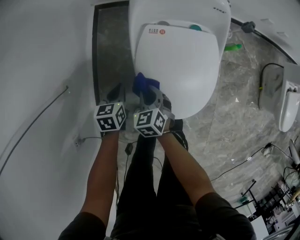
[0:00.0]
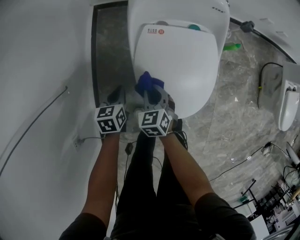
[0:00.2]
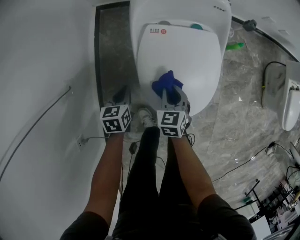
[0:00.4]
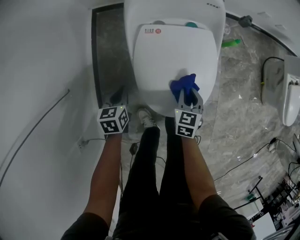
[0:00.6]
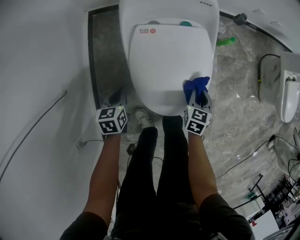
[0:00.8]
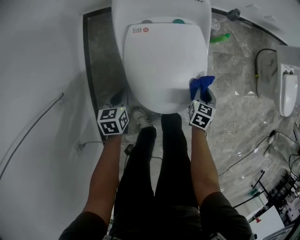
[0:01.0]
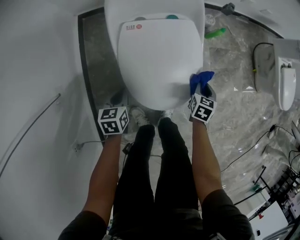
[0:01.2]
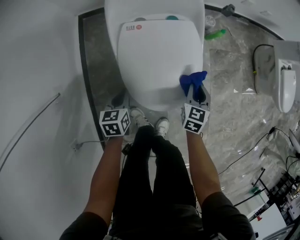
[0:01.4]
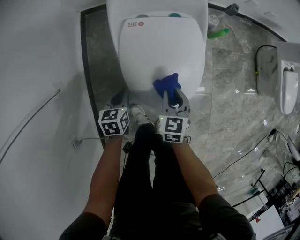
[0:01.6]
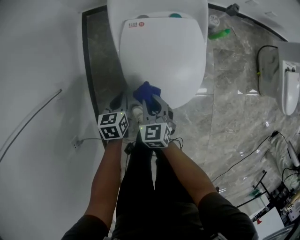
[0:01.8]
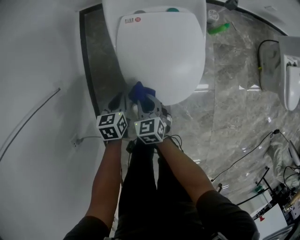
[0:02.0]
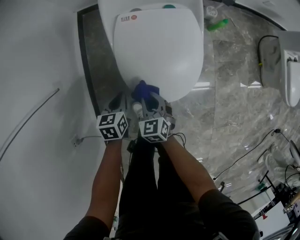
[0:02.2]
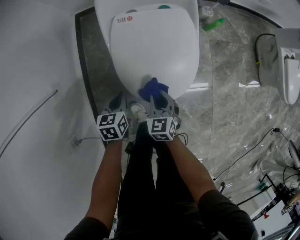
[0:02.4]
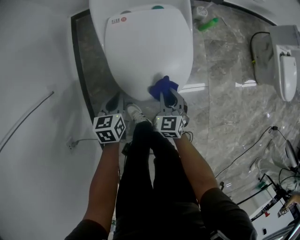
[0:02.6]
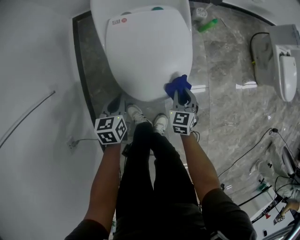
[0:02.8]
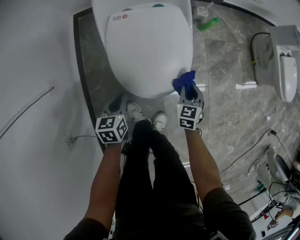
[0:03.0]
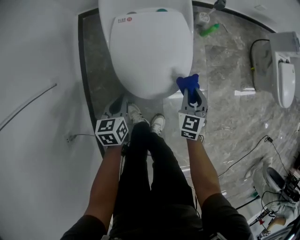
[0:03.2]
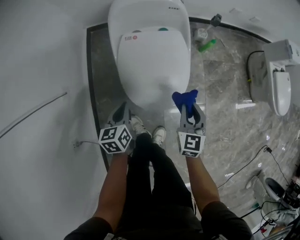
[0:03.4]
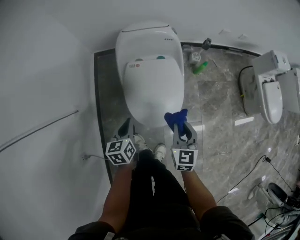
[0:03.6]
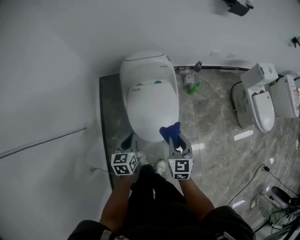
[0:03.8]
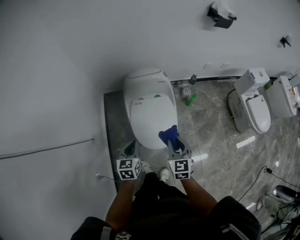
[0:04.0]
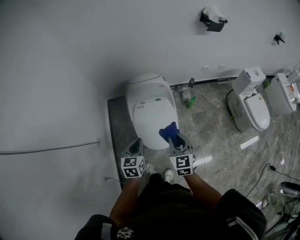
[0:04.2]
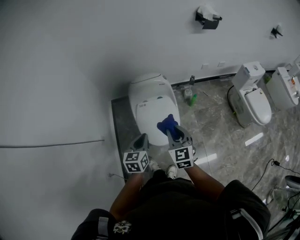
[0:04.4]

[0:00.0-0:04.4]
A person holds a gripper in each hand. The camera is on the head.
0:00.0 to 0:01.4: The right gripper shifts by some 30 cm, and turns by about 40 degrees. The left gripper ends up about 10 cm from where it was.
0:01.4 to 0:03.0: Both grippers travel together backward, roughly 5 cm. The right gripper moves about 20 cm to the left and comes back.
0:03.0 to 0:04.4: The grippers both shift upward by approximately 40 cm. The left gripper turns by approximately 20 degrees. Meanwhile the right gripper turns by some 30 degrees.

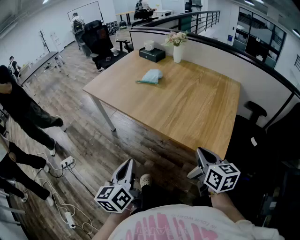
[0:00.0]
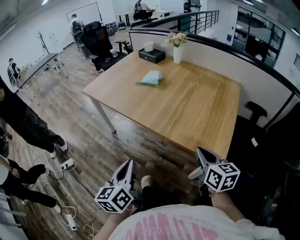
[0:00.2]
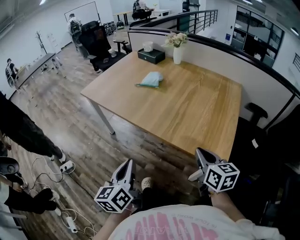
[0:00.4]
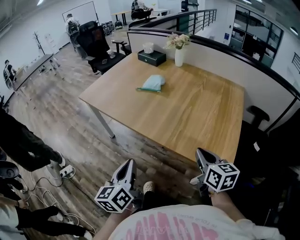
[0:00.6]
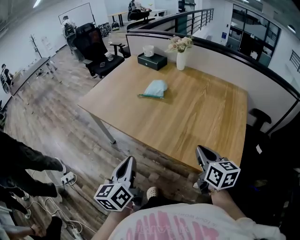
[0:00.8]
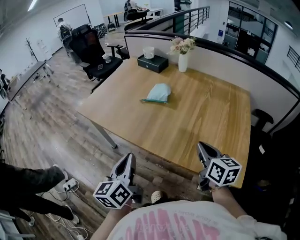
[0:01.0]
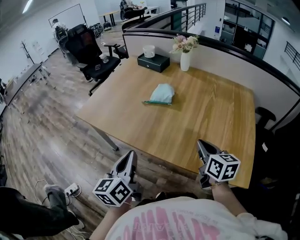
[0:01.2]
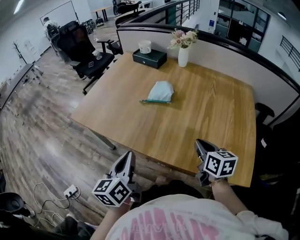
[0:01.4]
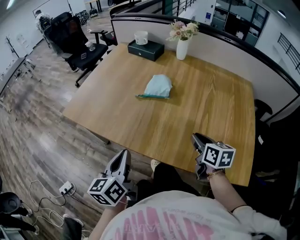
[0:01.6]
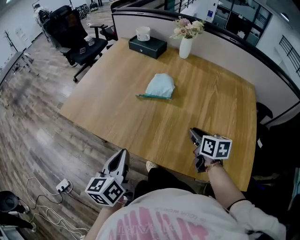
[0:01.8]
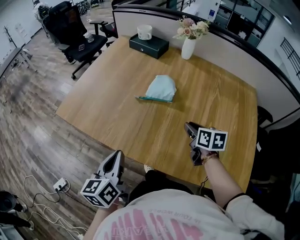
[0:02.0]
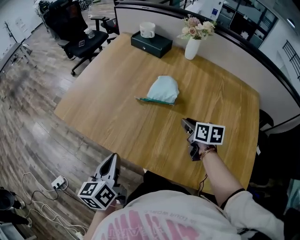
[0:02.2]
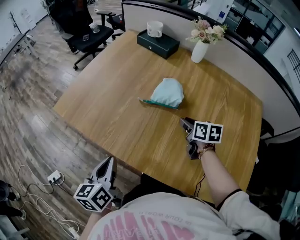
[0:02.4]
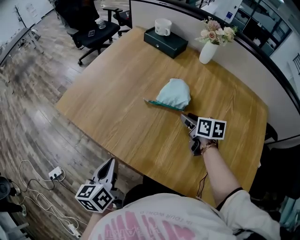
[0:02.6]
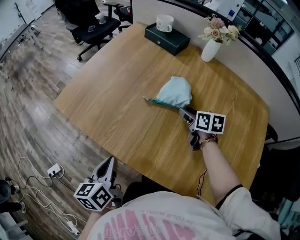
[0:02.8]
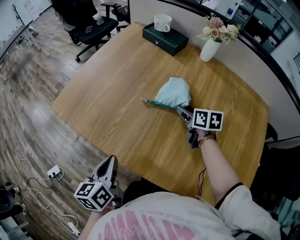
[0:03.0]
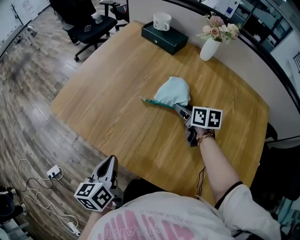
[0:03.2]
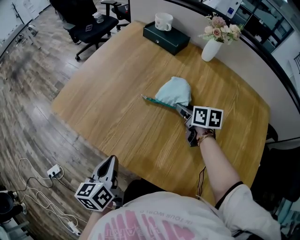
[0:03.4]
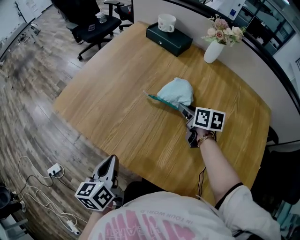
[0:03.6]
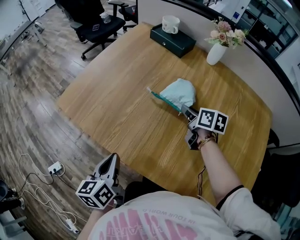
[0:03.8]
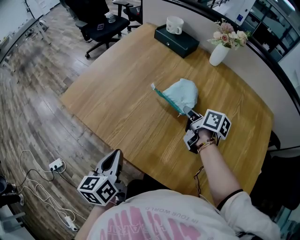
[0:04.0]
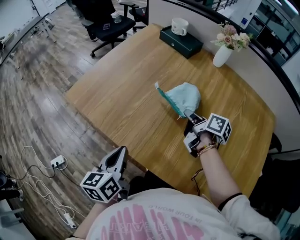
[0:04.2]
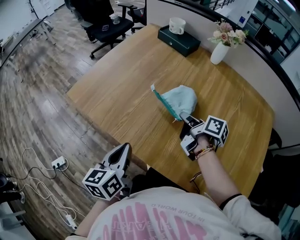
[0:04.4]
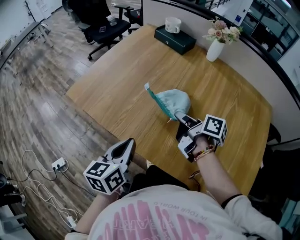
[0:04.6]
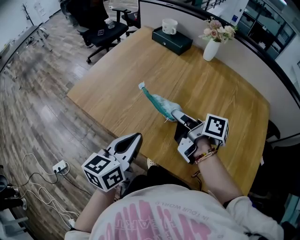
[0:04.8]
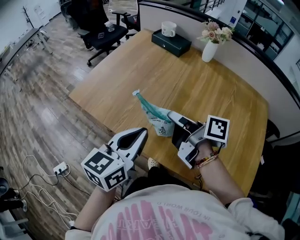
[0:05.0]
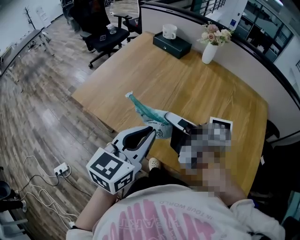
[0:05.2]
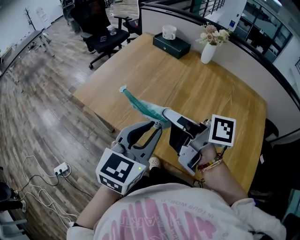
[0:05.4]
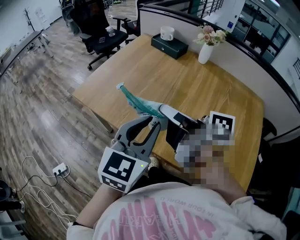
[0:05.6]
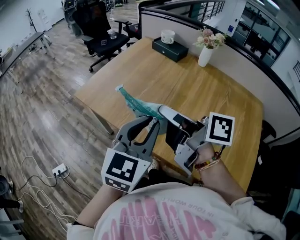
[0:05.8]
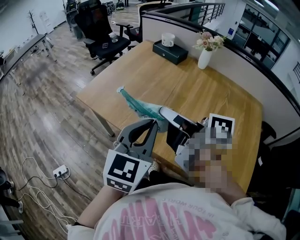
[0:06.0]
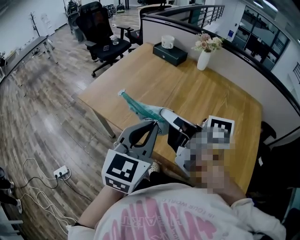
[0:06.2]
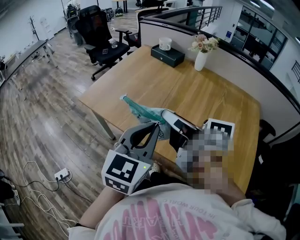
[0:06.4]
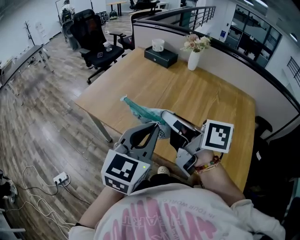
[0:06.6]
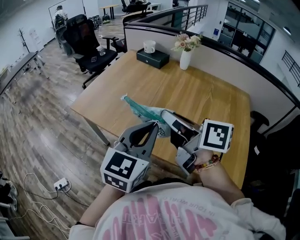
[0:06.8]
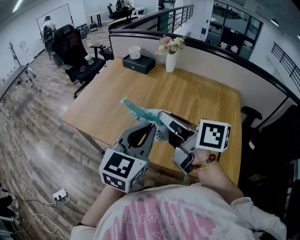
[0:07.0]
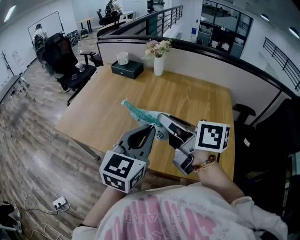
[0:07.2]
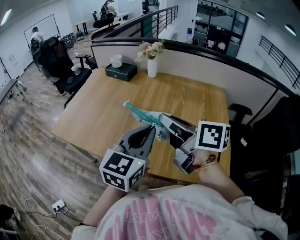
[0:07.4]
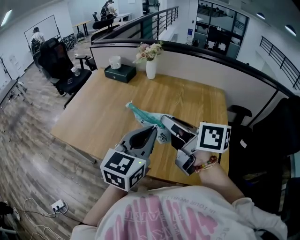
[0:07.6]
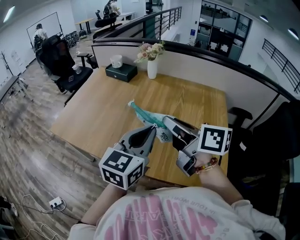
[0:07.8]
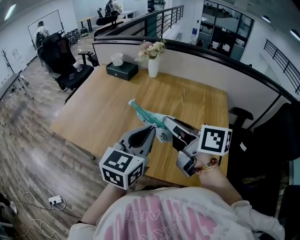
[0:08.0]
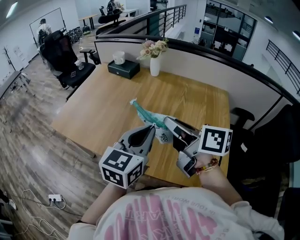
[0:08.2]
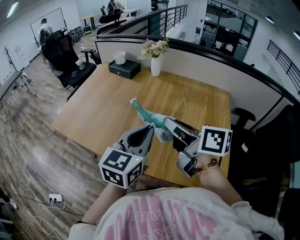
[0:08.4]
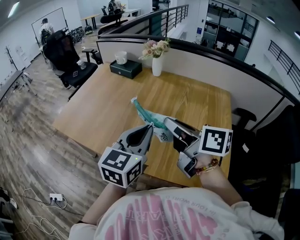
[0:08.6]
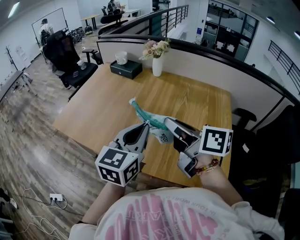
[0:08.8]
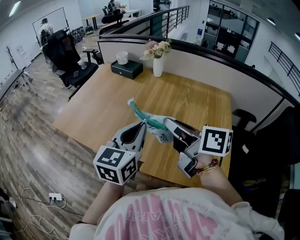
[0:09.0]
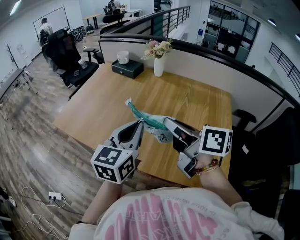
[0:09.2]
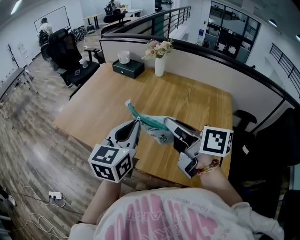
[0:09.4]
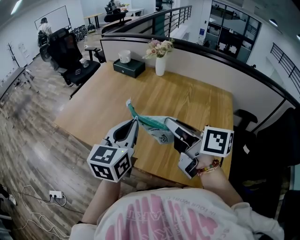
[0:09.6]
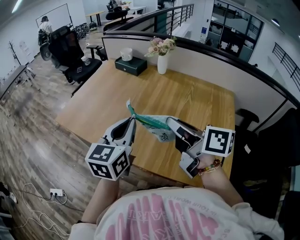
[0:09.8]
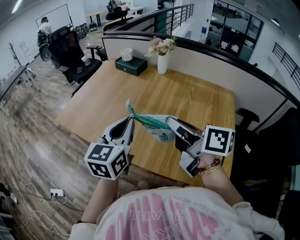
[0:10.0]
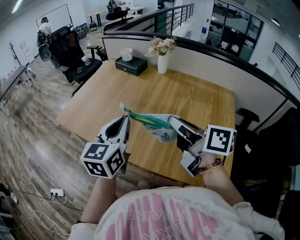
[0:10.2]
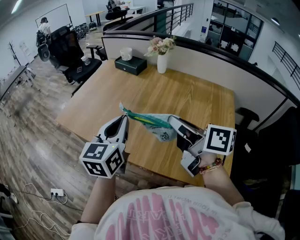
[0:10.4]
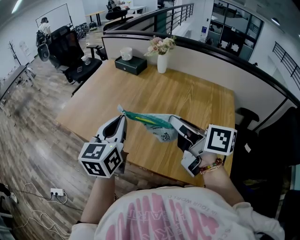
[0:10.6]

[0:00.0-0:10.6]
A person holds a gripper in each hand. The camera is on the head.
0:00.0 to 0:01.6: Both grippers move forward, some 35 cm.
0:01.6 to 0:03.0: The left gripper goes about 10 cm forward and downward; the right gripper shifts some 25 cm forward, and opens its fingers.
0:03.0 to 0:04.6: The left gripper shifts by approximately 5 cm. Meanwhile the right gripper is displaced backward, to the left and upward by some 15 cm, swivels roughly 40 degrees, and closes up.
0:04.6 to 0:06.0: The left gripper shifts some 15 cm upward, and changes its angle by about 40 degrees, while the right gripper travels upward, backward and to the left by some 25 cm, and turns by approximately 30 degrees.
0:06.0 to 0:07.6: The two grippers go some 20 cm to the right. The right gripper turns by roughly 30 degrees, while the left gripper swivels approximately 20 degrees.
0:07.6 to 0:09.0: The left gripper shifts by approximately 5 cm.
0:09.0 to 0:10.6: The left gripper is displaced to the left by about 10 cm.

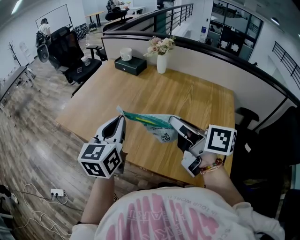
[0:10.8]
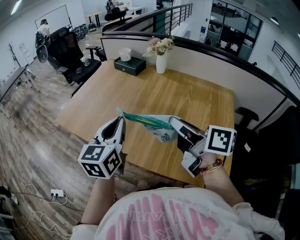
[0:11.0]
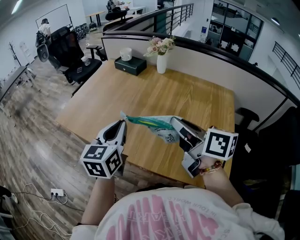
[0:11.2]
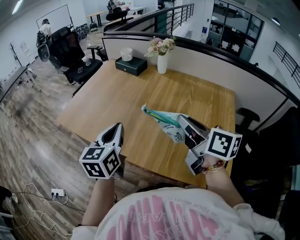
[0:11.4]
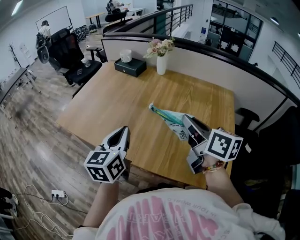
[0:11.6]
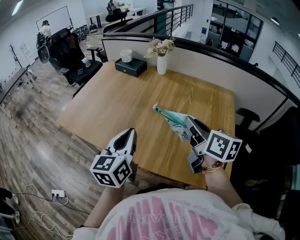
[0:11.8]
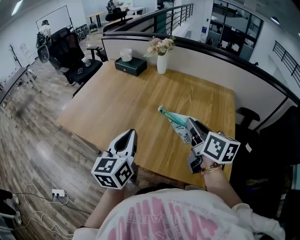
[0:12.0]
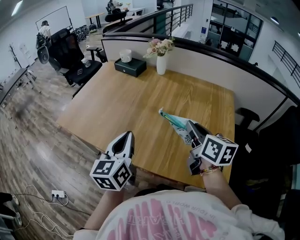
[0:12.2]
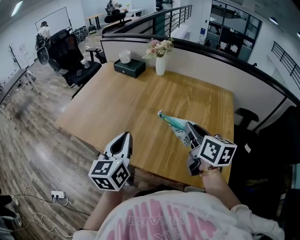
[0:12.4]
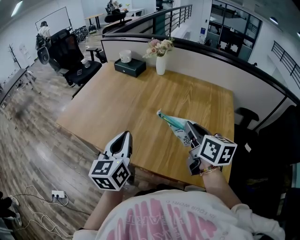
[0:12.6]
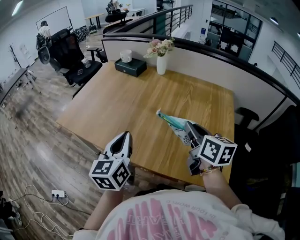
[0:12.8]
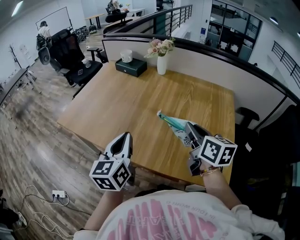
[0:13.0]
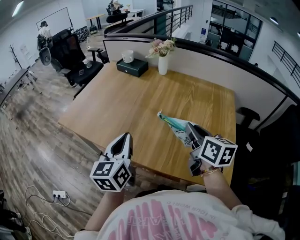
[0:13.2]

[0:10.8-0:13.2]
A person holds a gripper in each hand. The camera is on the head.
0:10.8 to 0:12.0: The right gripper heads to the right, covering about 10 cm, and turns by approximately 30 degrees, while the left gripper changes place by some 5 cm.
0:12.0 to 0:13.2: The grippers move only a little.

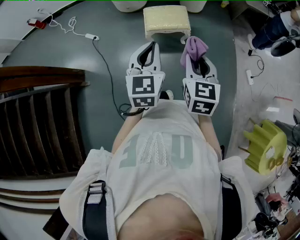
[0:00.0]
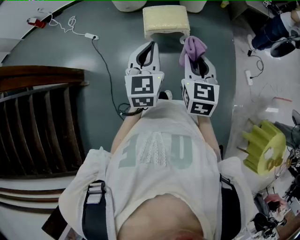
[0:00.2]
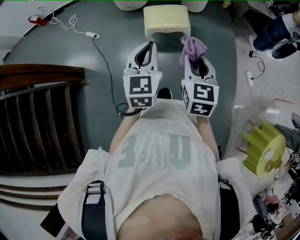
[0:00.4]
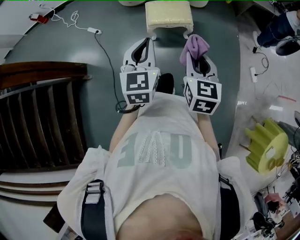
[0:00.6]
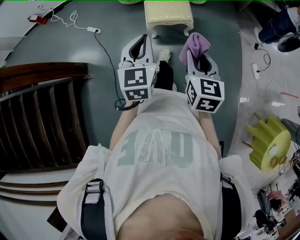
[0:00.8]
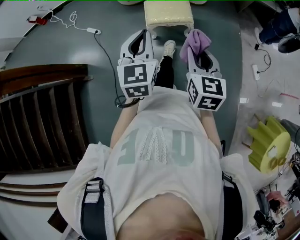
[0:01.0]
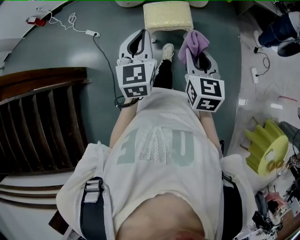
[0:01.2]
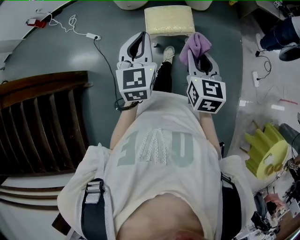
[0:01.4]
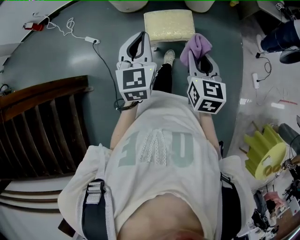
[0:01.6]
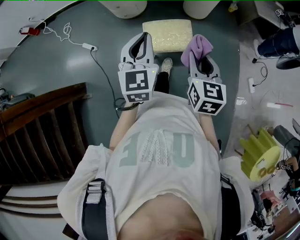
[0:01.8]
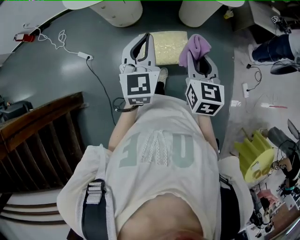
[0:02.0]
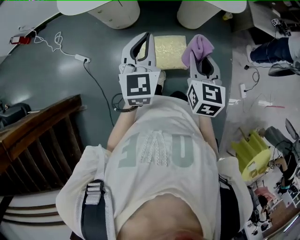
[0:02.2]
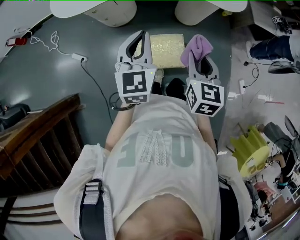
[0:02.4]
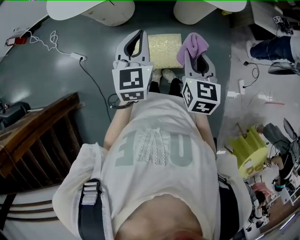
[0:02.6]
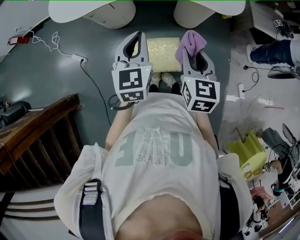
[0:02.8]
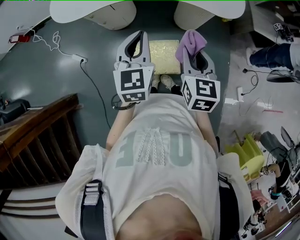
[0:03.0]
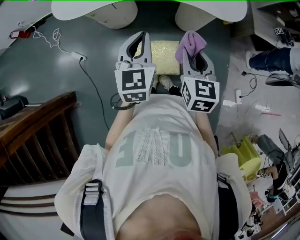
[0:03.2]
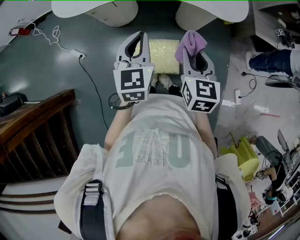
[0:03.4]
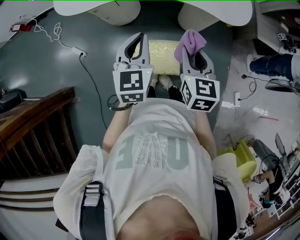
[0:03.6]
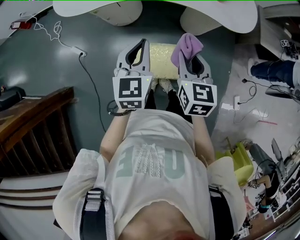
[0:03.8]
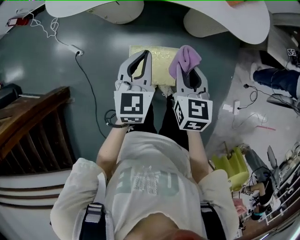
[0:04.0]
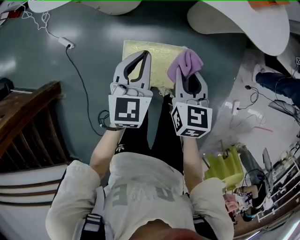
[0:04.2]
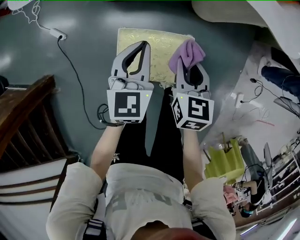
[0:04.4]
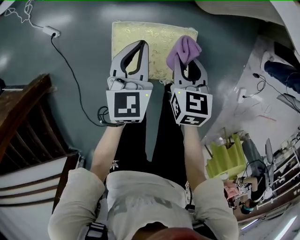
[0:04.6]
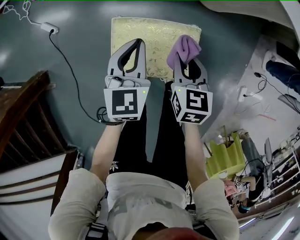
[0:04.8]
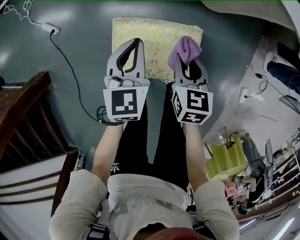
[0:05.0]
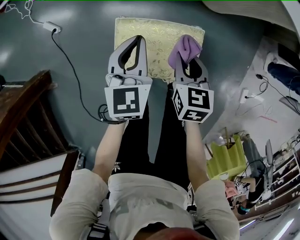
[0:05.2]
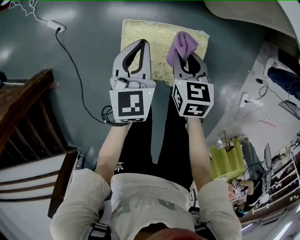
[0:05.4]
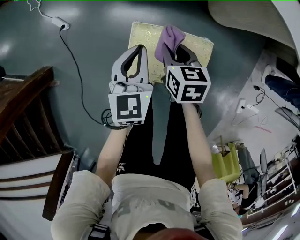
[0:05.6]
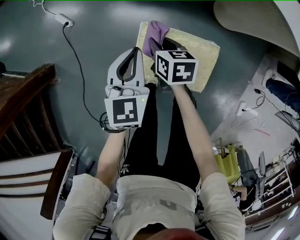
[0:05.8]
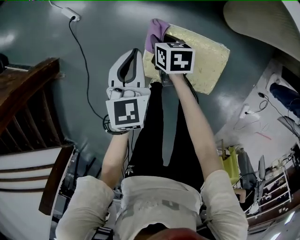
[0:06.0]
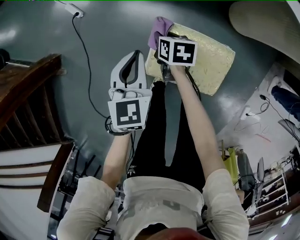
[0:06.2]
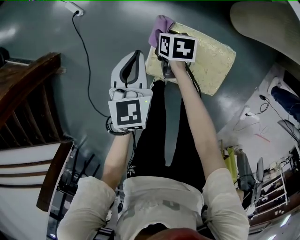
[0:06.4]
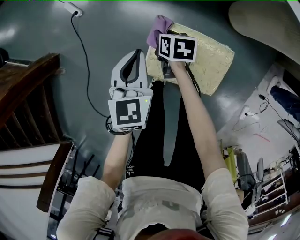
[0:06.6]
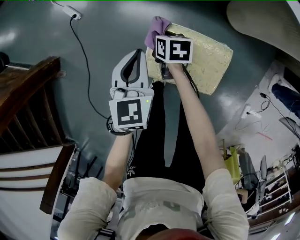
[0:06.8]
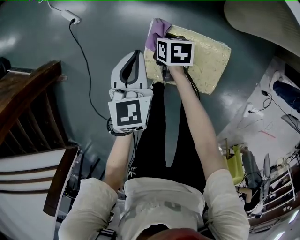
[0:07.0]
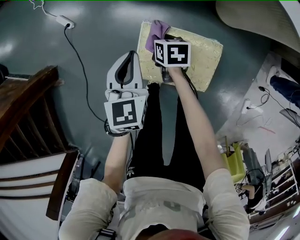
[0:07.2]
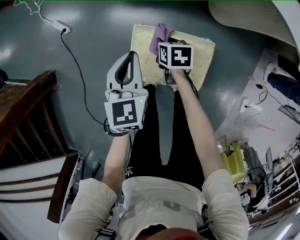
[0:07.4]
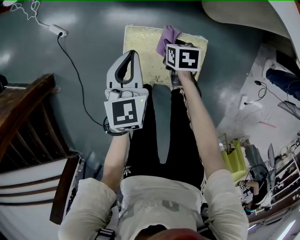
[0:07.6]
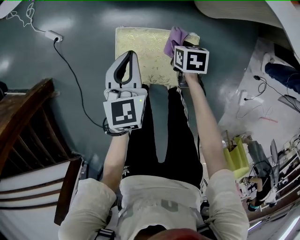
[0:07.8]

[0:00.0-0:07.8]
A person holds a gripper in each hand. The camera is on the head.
0:00.0 to 0:01.6: Both grippers travel together forward, approximately 20 cm.
0:01.6 to 0:03.2: Both grippers move forward, some 30 cm.
0:03.2 to 0:04.6: Both grippers travel together downward, roughly 35 cm.
0:04.6 to 0:06.2: The left gripper moves roughly 20 cm. The right gripper moves roughly 30 cm, and turns by roughly 30 degrees.
0:06.2 to 0:07.8: The right gripper moves to the right and backward, approximately 25 cm, while the left gripper shifts about 15 cm to the right.
